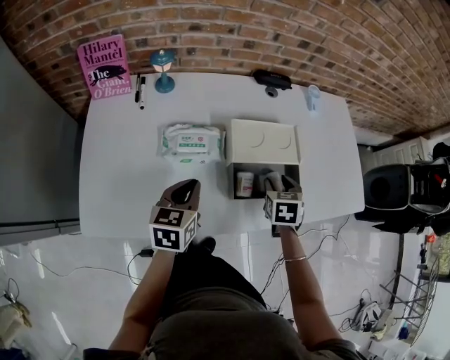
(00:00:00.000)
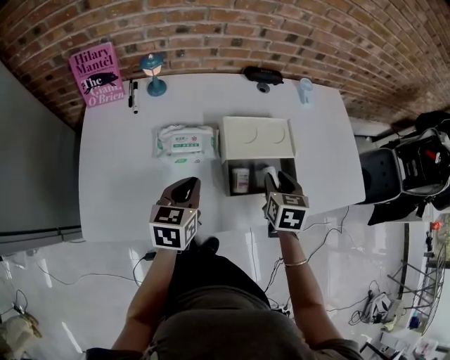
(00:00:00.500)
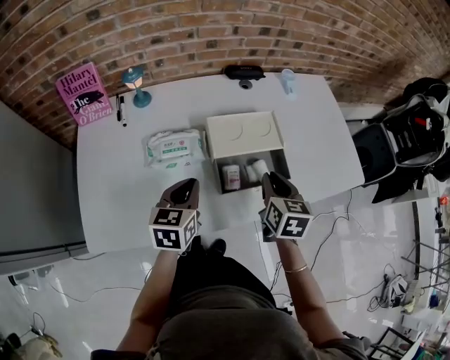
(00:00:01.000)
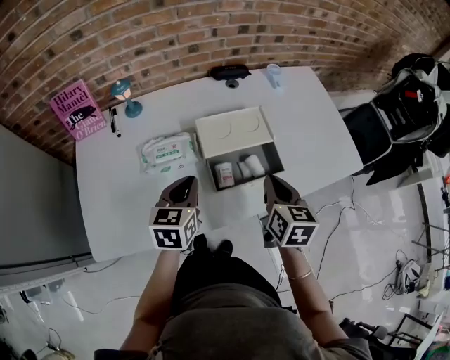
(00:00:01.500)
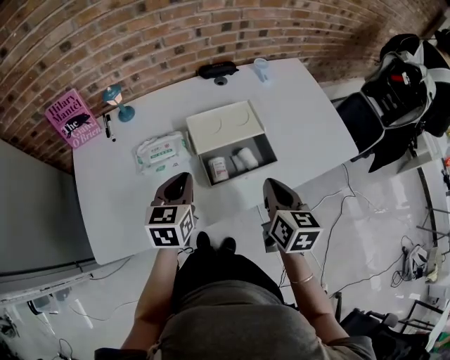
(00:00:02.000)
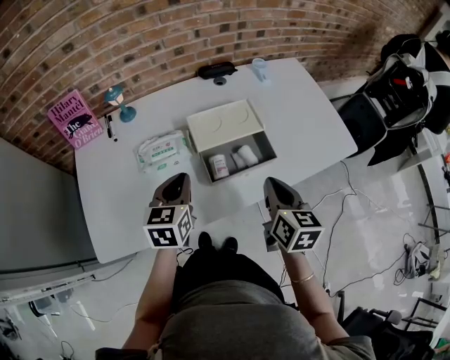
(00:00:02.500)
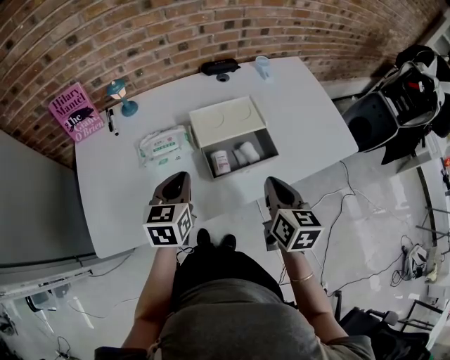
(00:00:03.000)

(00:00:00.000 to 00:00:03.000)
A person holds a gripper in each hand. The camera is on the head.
00:00:00.000 - 00:00:01.500: The left gripper goes some 5 cm to the right. Meanwhile the right gripper moves upward and backward, some 10 cm, changes its angle by about 30 degrees, and closes its fingers.
00:00:01.500 - 00:00:03.000: The right gripper is displaced backward by approximately 5 cm.

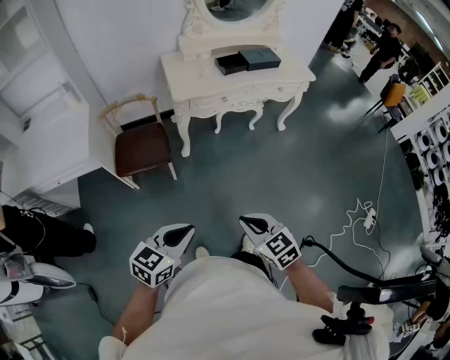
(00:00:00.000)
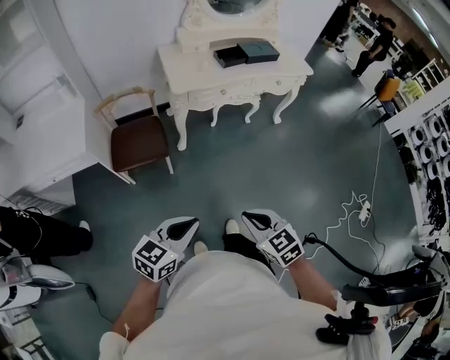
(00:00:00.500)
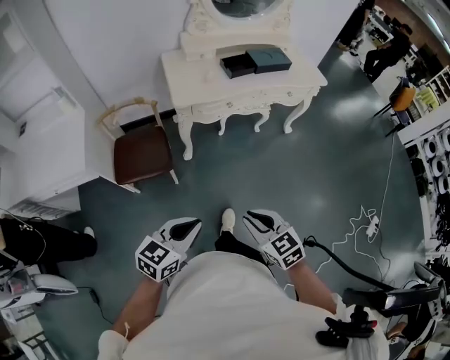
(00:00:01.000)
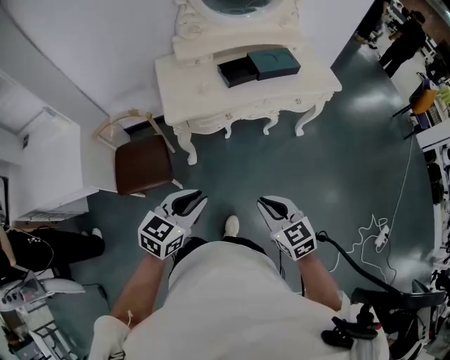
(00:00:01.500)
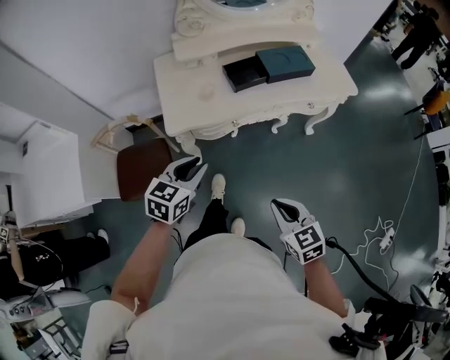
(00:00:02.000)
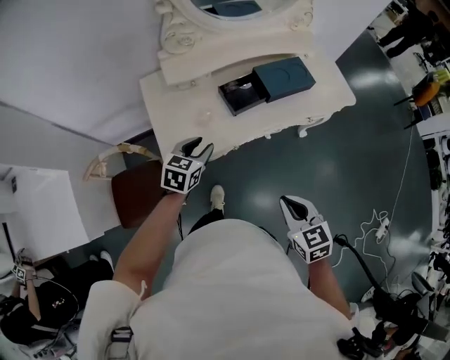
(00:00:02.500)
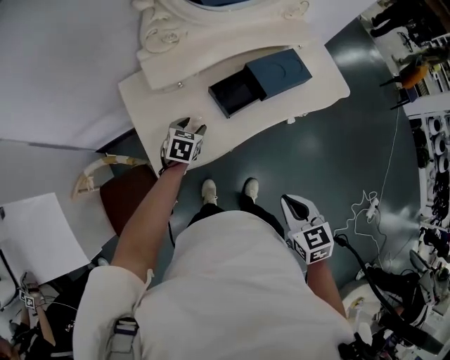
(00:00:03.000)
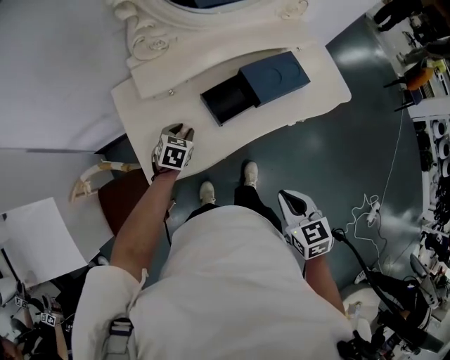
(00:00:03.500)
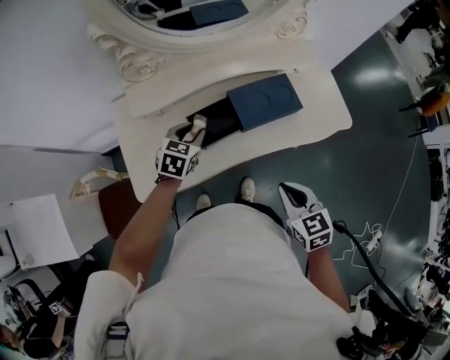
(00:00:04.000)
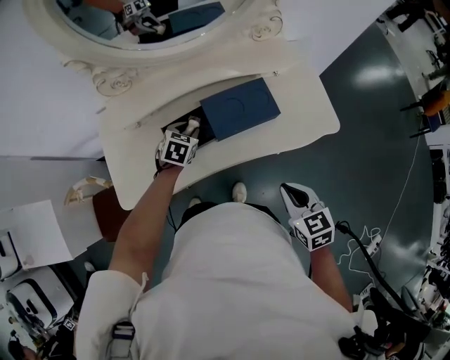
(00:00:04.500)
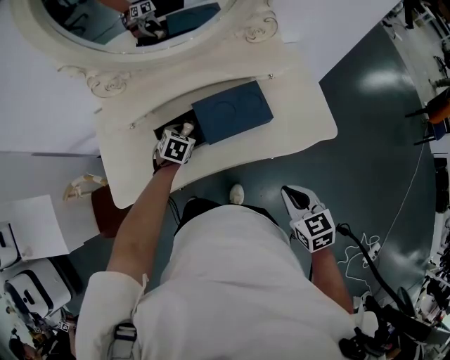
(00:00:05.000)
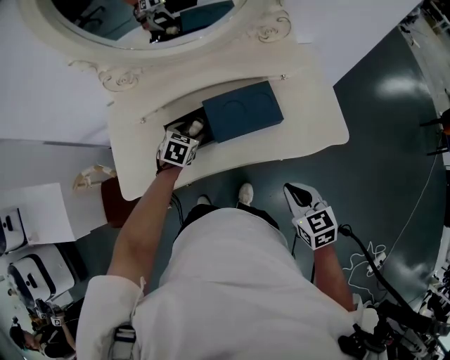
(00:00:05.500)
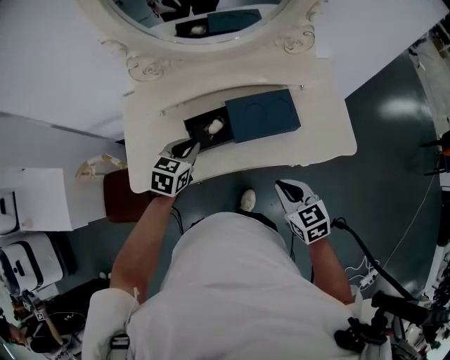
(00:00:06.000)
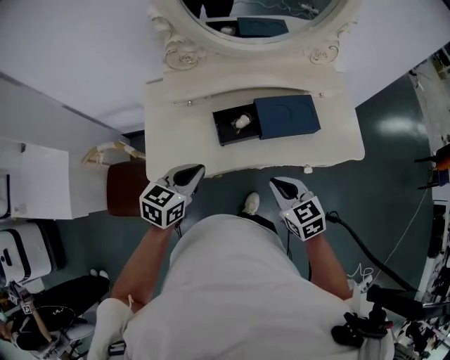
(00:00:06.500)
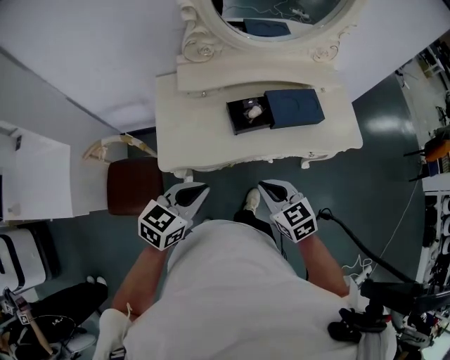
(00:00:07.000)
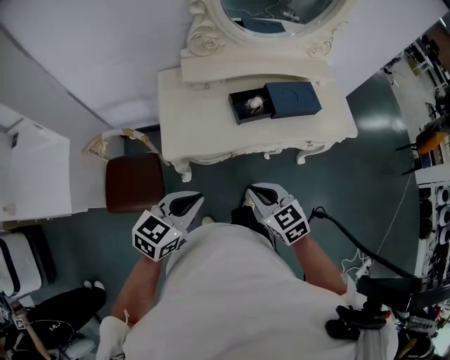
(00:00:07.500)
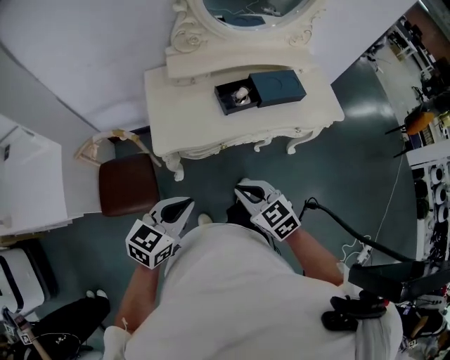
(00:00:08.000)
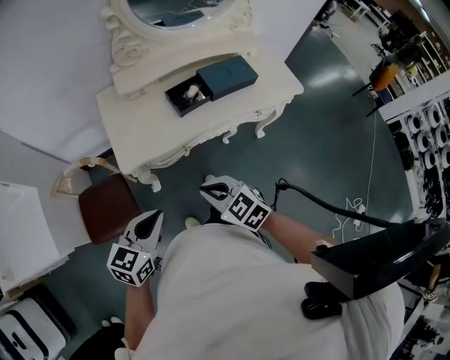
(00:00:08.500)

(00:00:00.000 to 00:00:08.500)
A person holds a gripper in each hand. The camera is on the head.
00:00:00.000 - 00:00:02.000: The pair of grippers is taken forward, roughly 50 cm.
00:00:02.000 - 00:00:04.000: Both grippers travel together forward, roughly 40 cm. The left gripper opens and closes again.
00:00:04.000 - 00:00:06.500: The right gripper moves approximately 15 cm to the right and comes back, while the left gripper travels backward and upward by some 20 cm, and closes.
00:00:06.500 - 00:00:08.500: Both grippers travel together backward and to the left, roughly 30 cm.

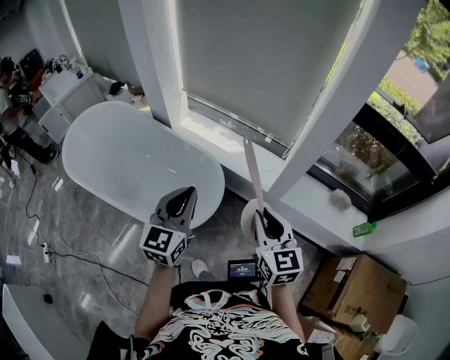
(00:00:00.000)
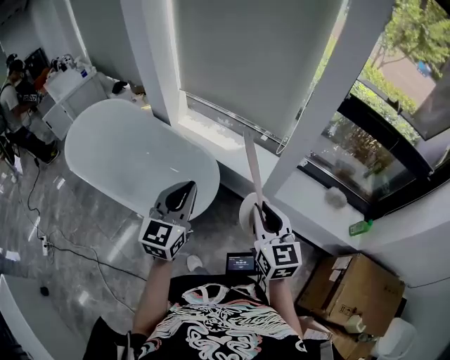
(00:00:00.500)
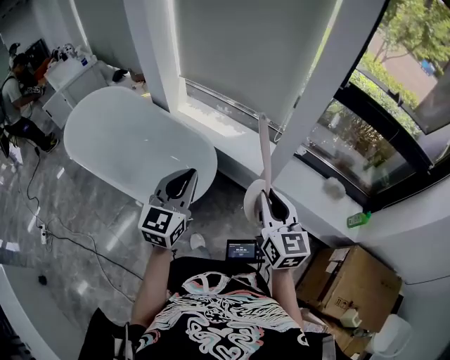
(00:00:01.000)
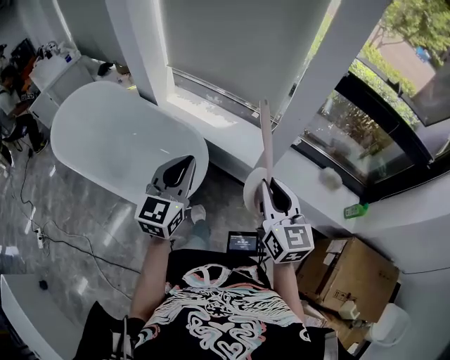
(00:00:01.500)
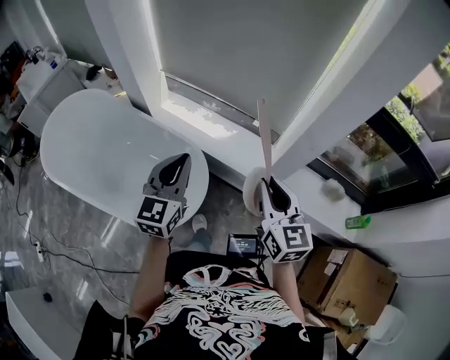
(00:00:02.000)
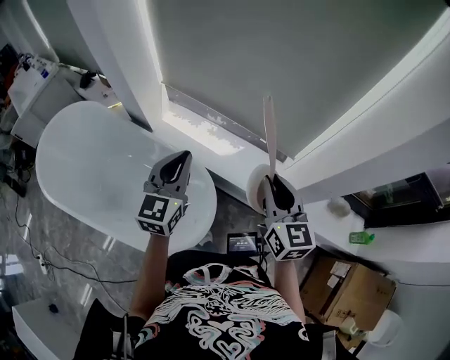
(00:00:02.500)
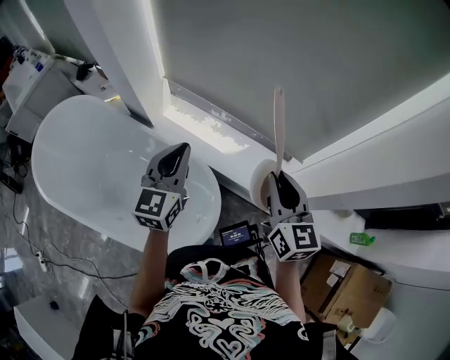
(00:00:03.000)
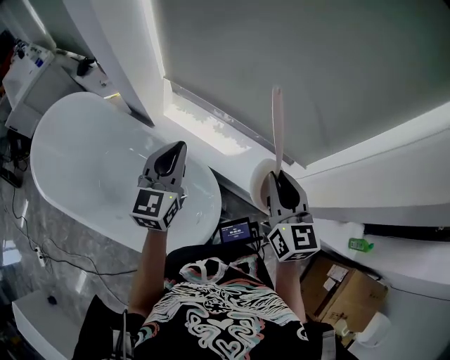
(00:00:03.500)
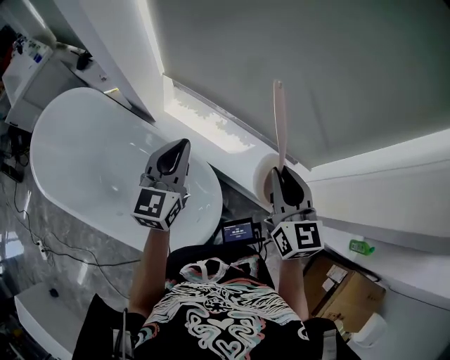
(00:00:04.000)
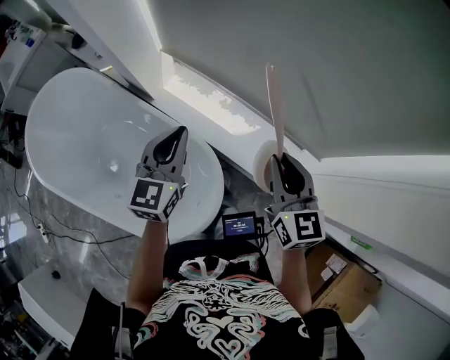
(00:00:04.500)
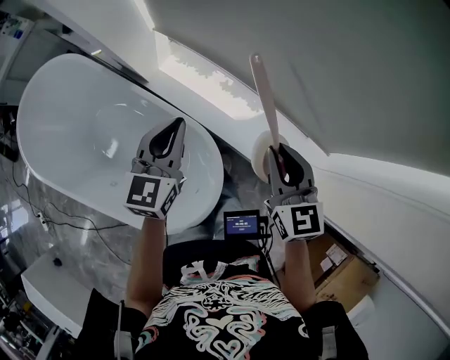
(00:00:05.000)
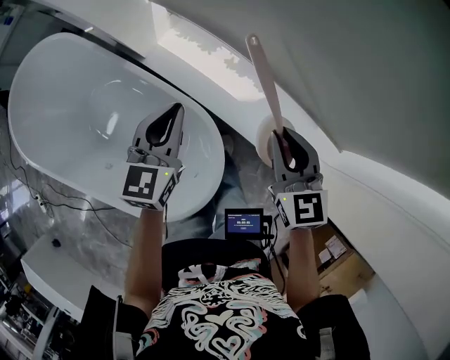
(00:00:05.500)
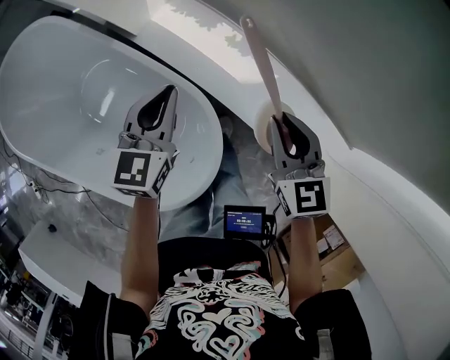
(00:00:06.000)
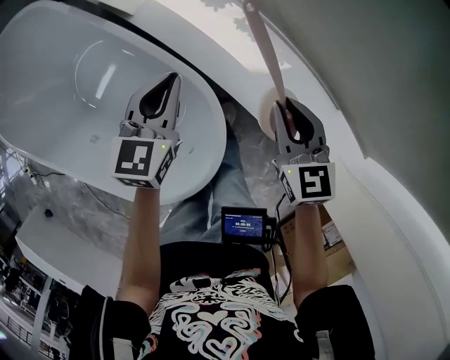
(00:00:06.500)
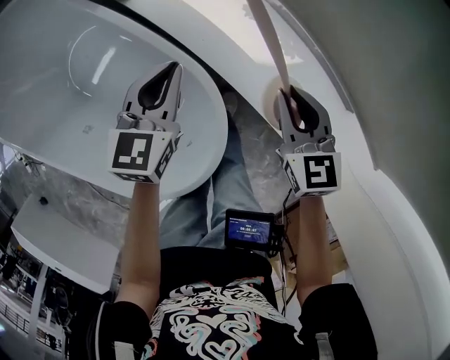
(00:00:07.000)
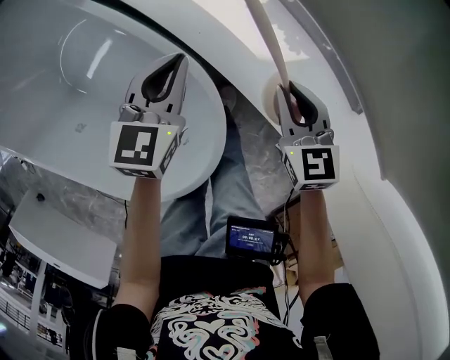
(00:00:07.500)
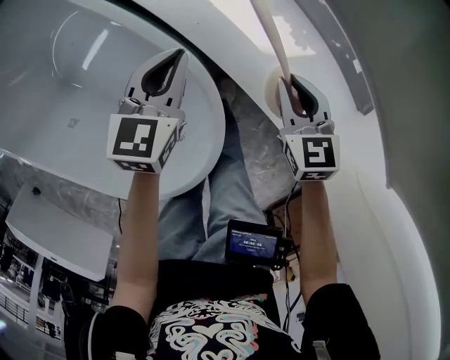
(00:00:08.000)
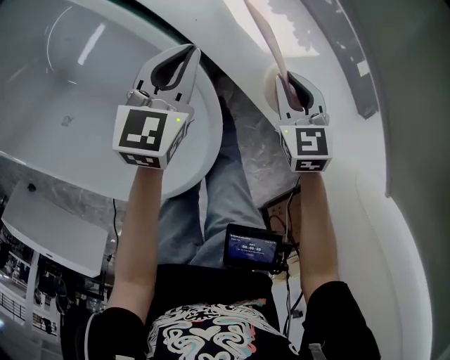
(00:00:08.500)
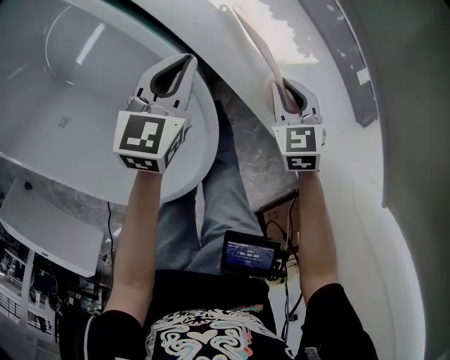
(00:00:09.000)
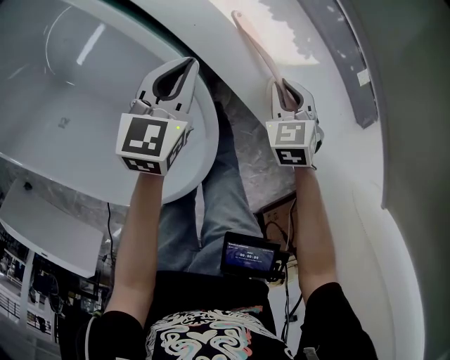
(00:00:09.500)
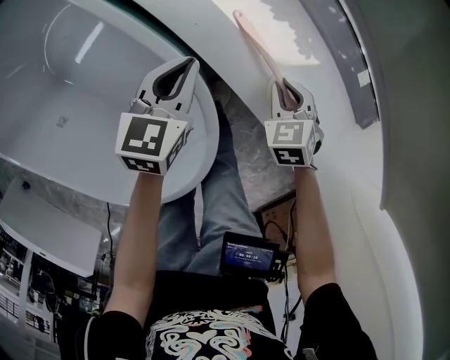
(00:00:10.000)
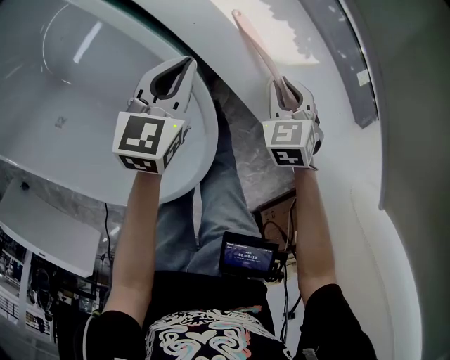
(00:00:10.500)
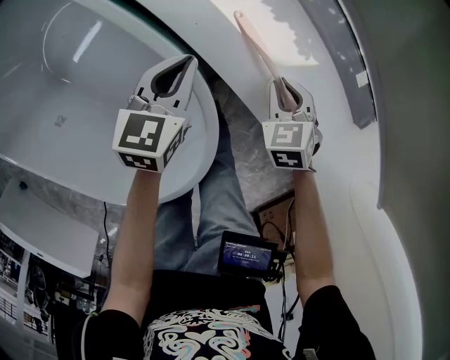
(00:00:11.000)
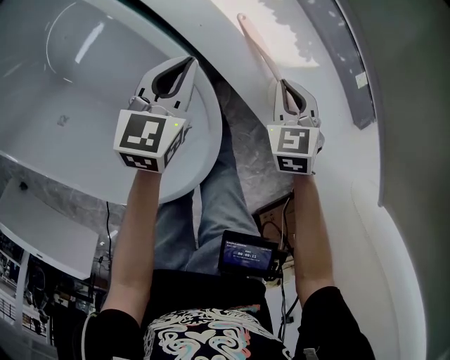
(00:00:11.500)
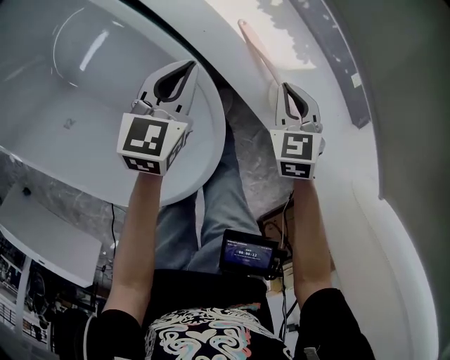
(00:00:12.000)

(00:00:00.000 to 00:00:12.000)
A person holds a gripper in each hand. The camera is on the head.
00:00:00.000 - 00:00:02.000: Both grippers travel together forward, some 15 cm.
00:00:02.000 - 00:00:04.000: The left gripper goes approximately 30 cm forward and to the left, while the right gripper moves forward, about 30 cm.
00:00:04.000 - 00:00:06.000: The right gripper moves downward and forward, approximately 25 cm, and changes its angle by roughly 20 degrees, while the left gripper travels downward by about 25 cm.
00:00:06.000 - 00:00:08.000: The grippers both shift downward by approximately 25 cm.
00:00:08.000 - 00:00:10.000: The left gripper heads downward, covering some 5 cm. The right gripper is displaced downward by some 10 cm, and rotates about 30 degrees.
00:00:10.000 - 00:00:12.000: The right gripper shifts about 10 cm upward.

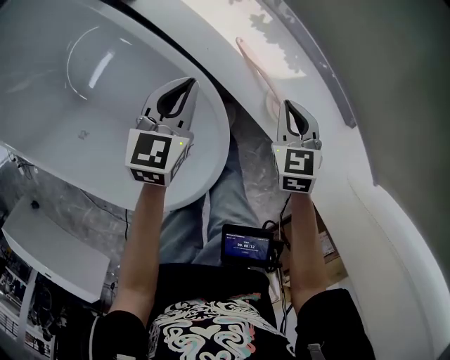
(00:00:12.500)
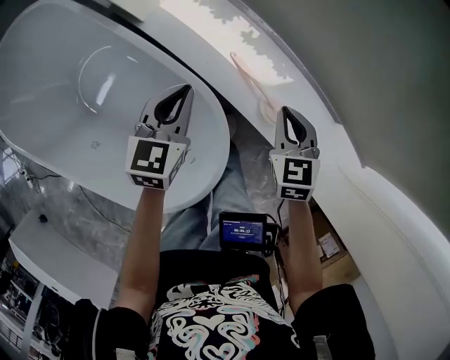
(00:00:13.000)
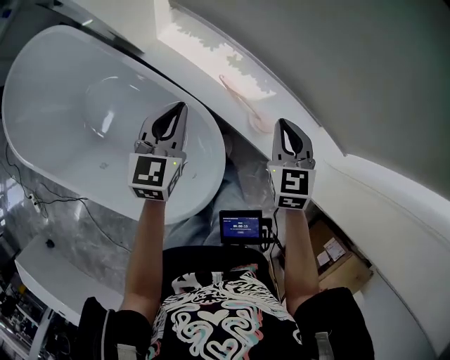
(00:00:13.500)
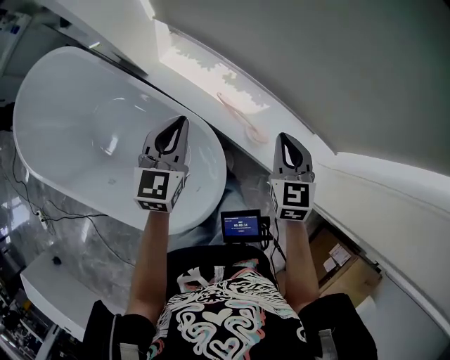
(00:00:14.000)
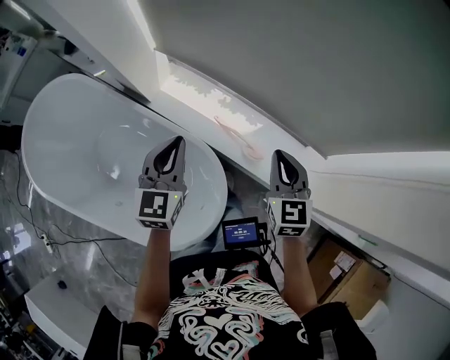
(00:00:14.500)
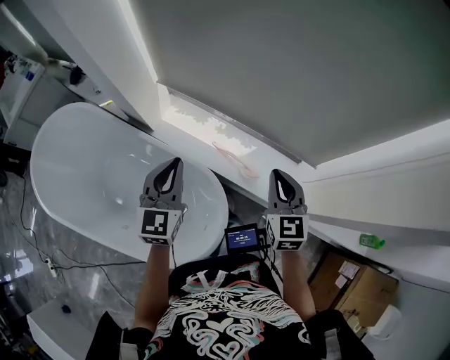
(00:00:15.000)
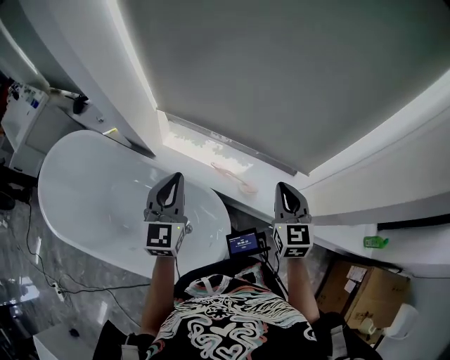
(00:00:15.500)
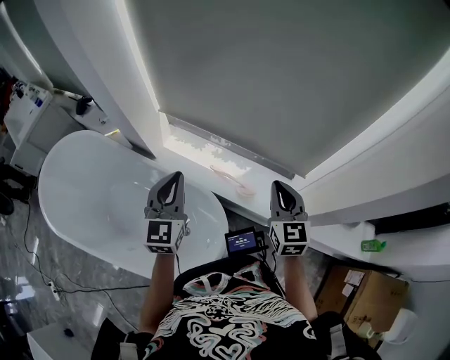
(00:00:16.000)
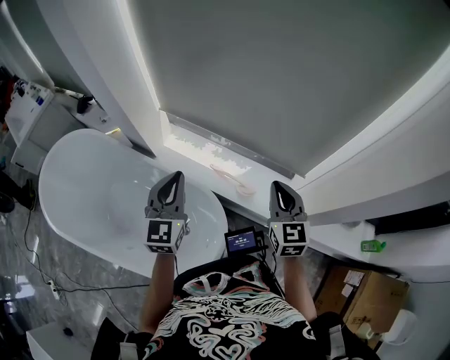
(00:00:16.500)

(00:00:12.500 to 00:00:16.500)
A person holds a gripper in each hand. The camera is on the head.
00:00:12.500 - 00:00:14.500: Both grippers travel together upward, roughly 30 cm. The right gripper rotates approximately 30 degrees, while the left gripper swivels some 20 degrees.
00:00:14.500 - 00:00:16.500: Both grippers travel together upward and backward, roughly 15 cm.
